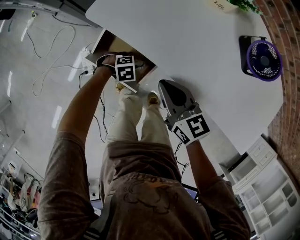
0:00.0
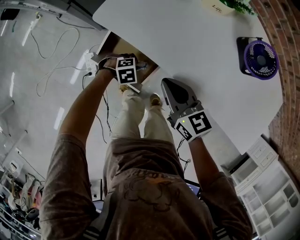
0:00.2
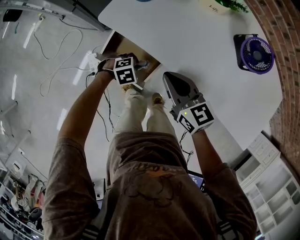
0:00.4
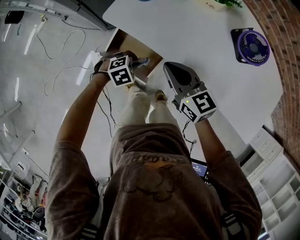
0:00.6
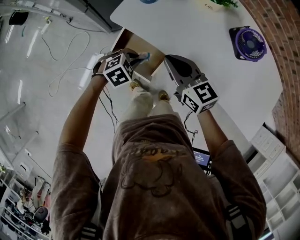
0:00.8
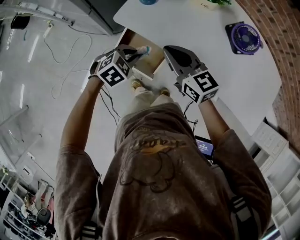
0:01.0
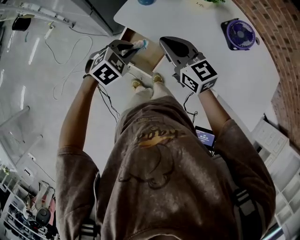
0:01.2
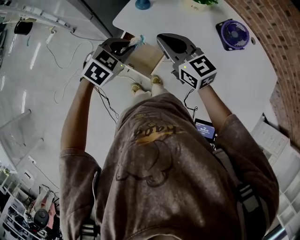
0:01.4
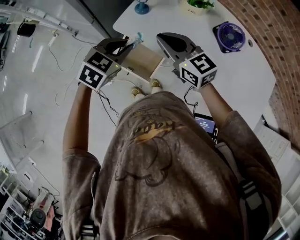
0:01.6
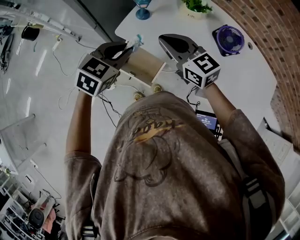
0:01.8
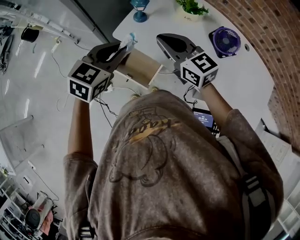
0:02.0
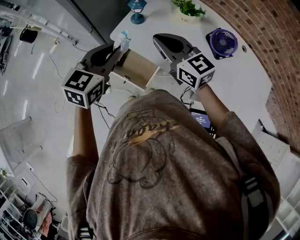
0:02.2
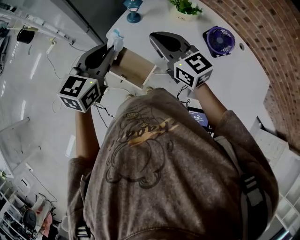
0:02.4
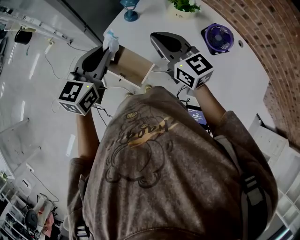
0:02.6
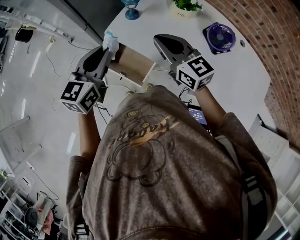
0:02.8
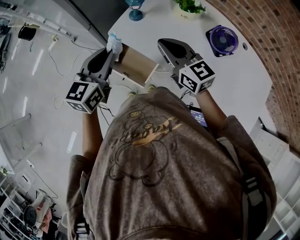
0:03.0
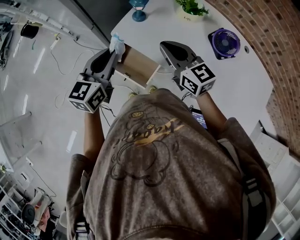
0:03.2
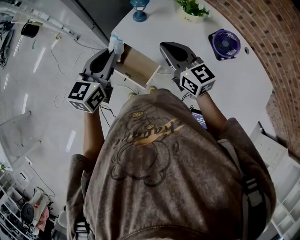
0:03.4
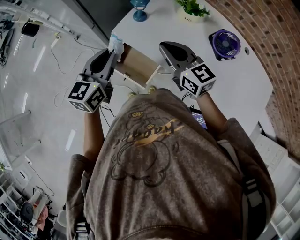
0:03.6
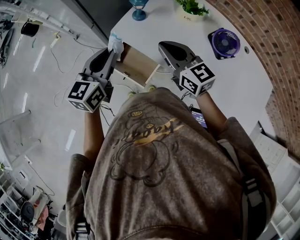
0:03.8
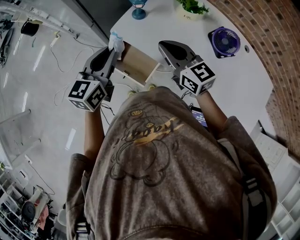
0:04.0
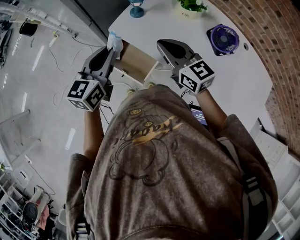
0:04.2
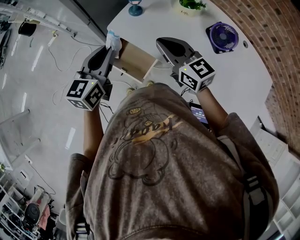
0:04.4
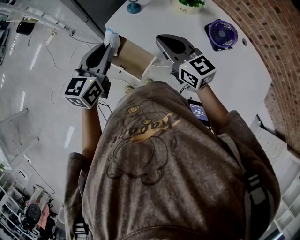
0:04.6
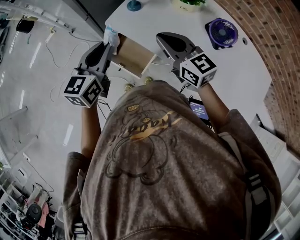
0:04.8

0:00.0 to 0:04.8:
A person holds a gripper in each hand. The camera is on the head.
0:00.0 to 0:01.6: The left gripper moves upward, some 40 cm, and points its fingers approximately 30 degrees further upward, while the right gripper travels upward by roughly 20 cm, and rotates roughly 20 degrees.
0:01.6 to 0:03.2: The left gripper is displaced upward by approximately 5 cm, and changes its angle by approximately 40 degrees.
0:03.2 to 0:04.8: The grippers move only a little.

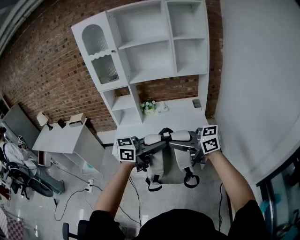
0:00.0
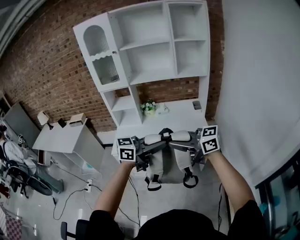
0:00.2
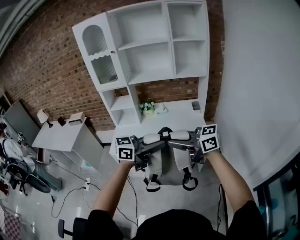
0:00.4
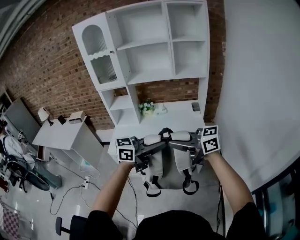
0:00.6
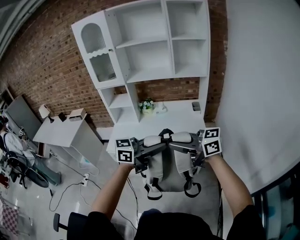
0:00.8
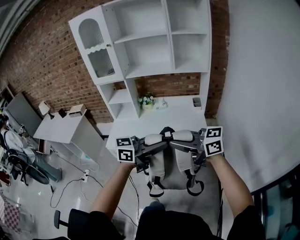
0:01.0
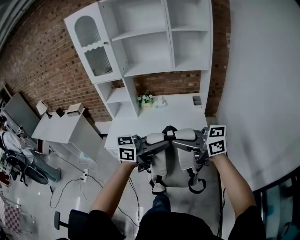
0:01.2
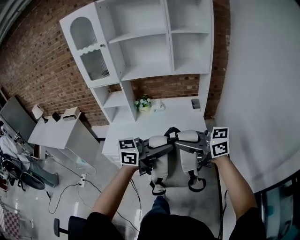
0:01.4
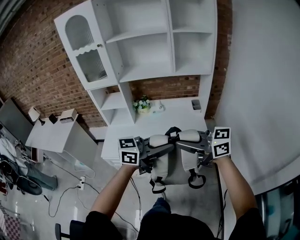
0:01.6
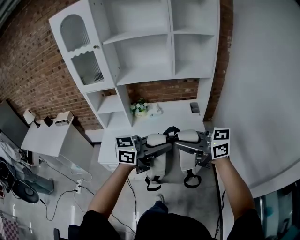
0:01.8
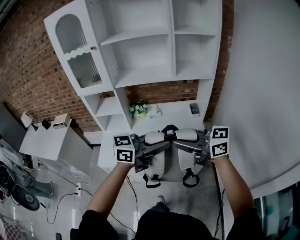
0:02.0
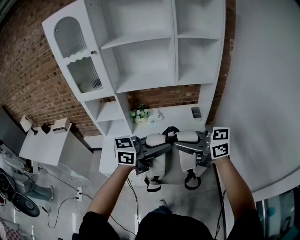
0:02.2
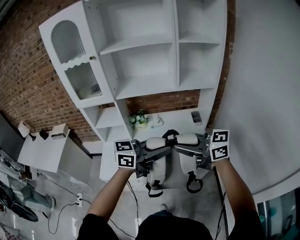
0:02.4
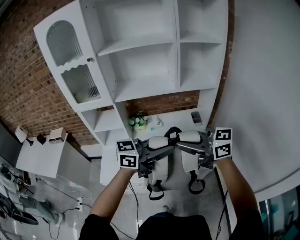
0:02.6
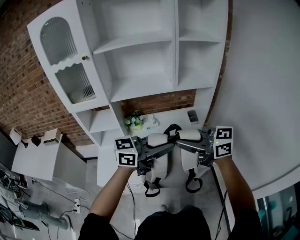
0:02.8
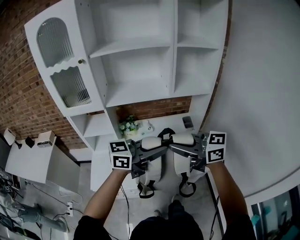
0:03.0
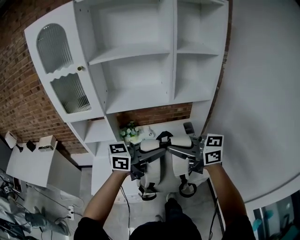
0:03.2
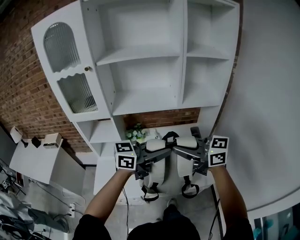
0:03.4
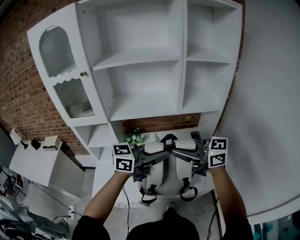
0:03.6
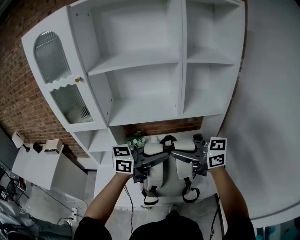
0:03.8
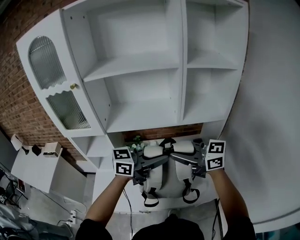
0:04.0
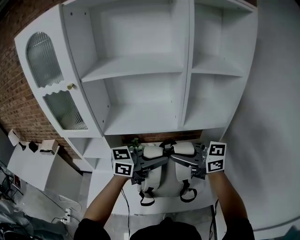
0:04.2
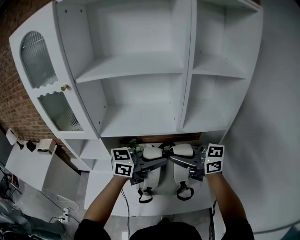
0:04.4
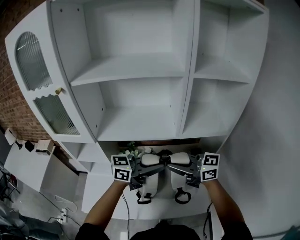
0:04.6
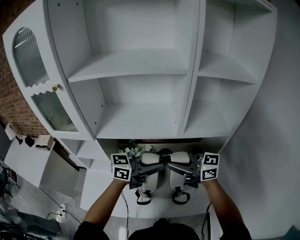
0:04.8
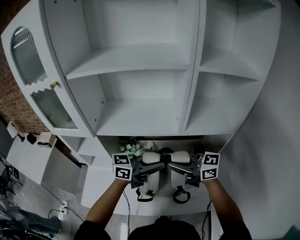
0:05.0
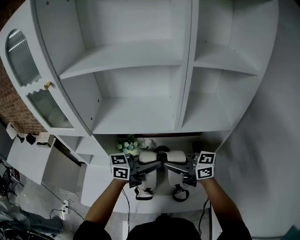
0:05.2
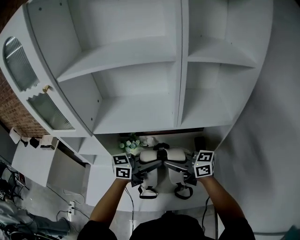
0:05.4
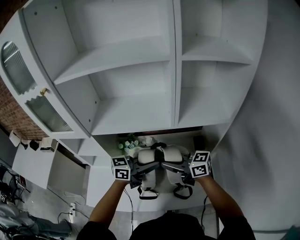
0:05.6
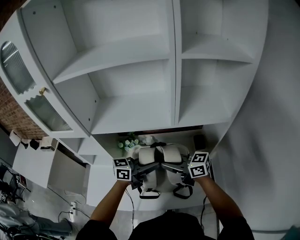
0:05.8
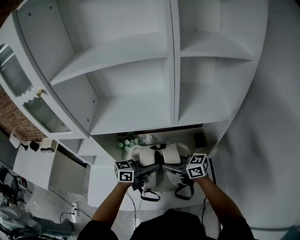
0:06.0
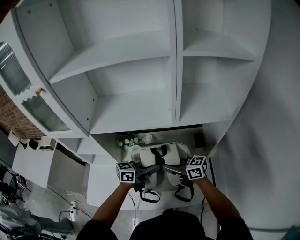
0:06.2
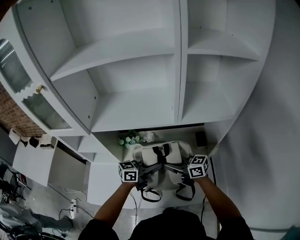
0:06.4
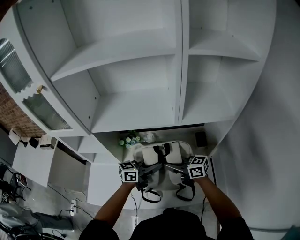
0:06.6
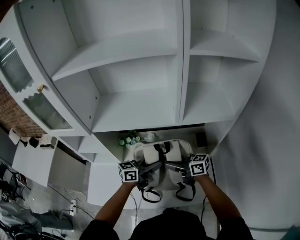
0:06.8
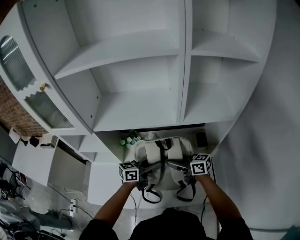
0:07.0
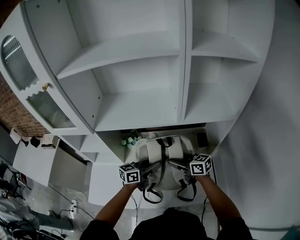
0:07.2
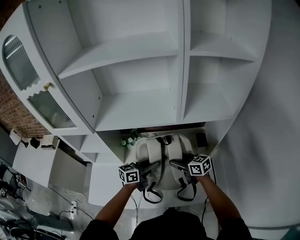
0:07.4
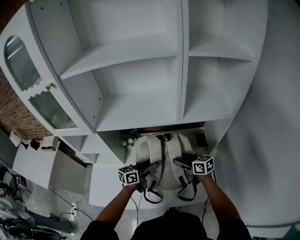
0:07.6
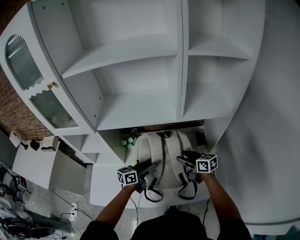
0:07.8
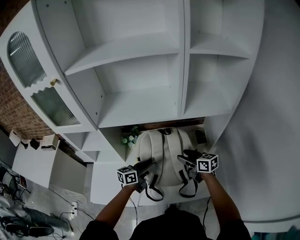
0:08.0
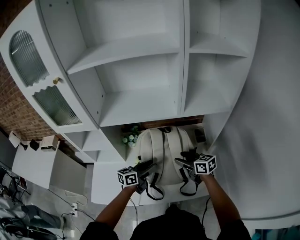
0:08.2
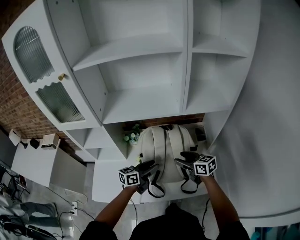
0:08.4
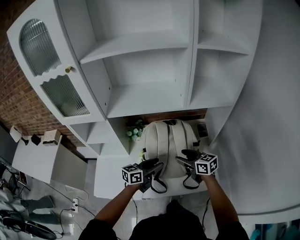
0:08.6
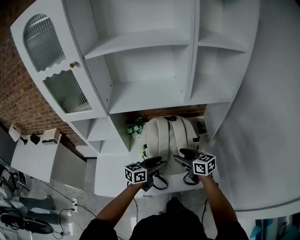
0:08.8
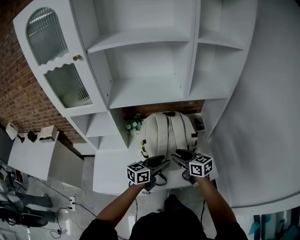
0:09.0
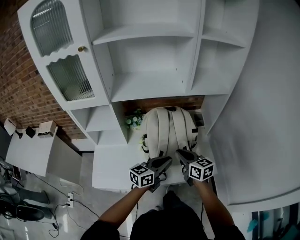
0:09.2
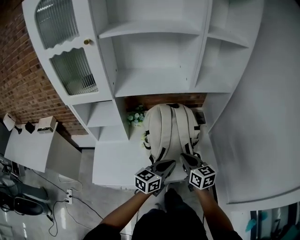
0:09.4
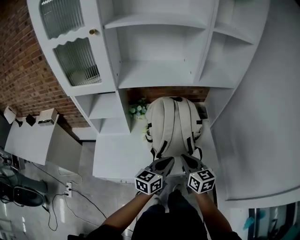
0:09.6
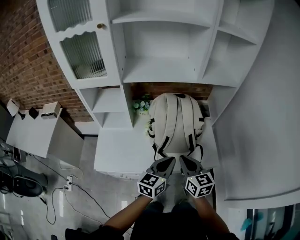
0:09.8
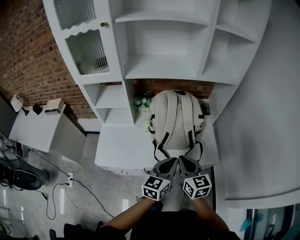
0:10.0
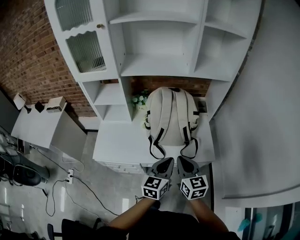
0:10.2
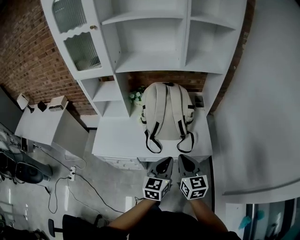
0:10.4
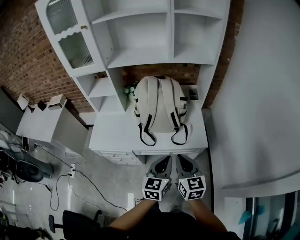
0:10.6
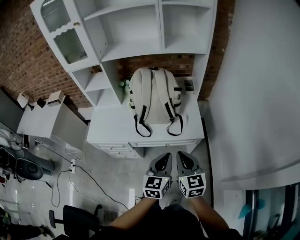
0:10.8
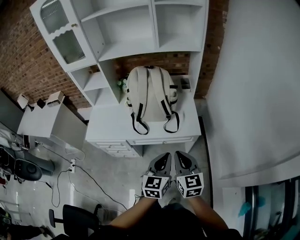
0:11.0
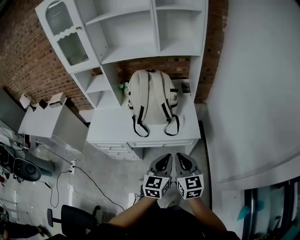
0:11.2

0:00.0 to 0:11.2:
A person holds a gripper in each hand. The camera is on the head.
0:00.0 to 0:01.6: The left gripper changes place by roughly 15 cm, while the right gripper shifts by roughly 15 cm.
0:01.6 to 0:03.2: The right gripper changes place by approximately 20 cm; the left gripper moves approximately 25 cm.
0:03.2 to 0:04.8: The left gripper shifts by roughly 20 cm, while the right gripper moves roughly 20 cm.
0:04.8 to 0:06.4: The two grippers go some 15 cm downward.
0:06.4 to 0:08.0: The left gripper shifts by some 10 cm, and opens up. Meanwhile the right gripper changes place by roughly 10 cm, swivels approximately 30 degrees, and opens its fingers.
0:08.0 to 0:09.6: Both grippers travel together backward, about 20 cm. The right gripper swivels about 20 degrees, and closes its fingers. The left gripper closes up.
0:09.6 to 0:11.2: Both grippers travel together backward and to the right, about 30 cm. The left gripper swivels approximately 30 degrees.

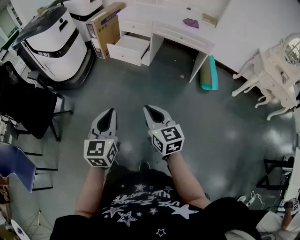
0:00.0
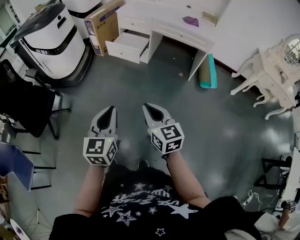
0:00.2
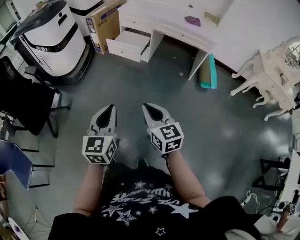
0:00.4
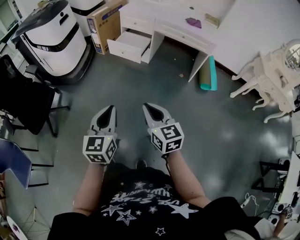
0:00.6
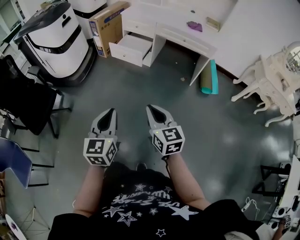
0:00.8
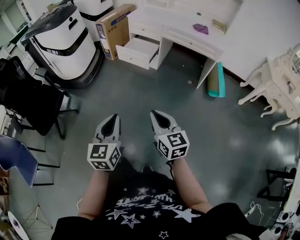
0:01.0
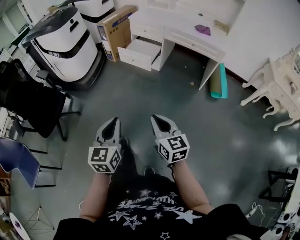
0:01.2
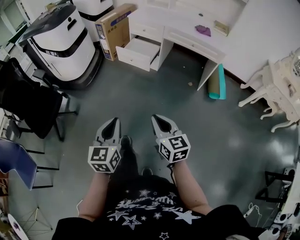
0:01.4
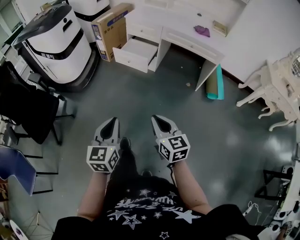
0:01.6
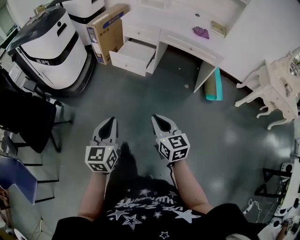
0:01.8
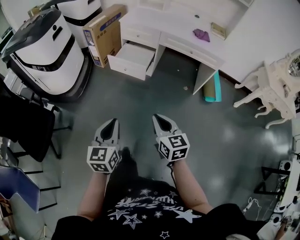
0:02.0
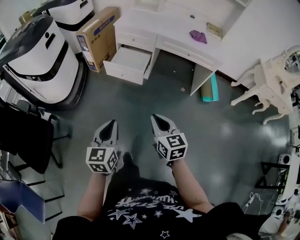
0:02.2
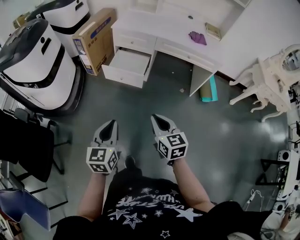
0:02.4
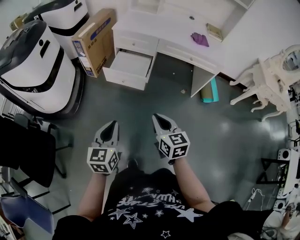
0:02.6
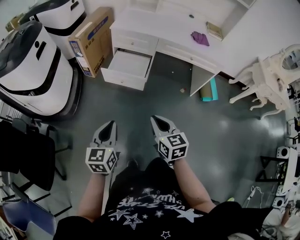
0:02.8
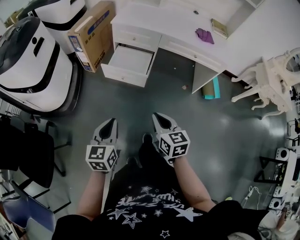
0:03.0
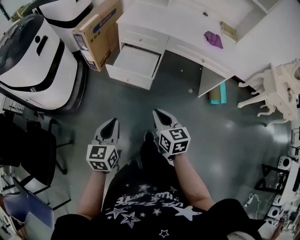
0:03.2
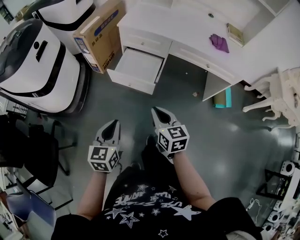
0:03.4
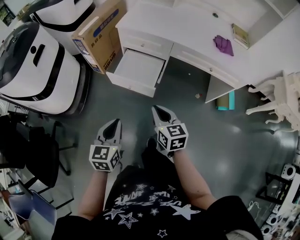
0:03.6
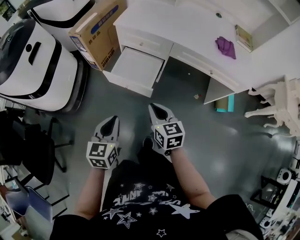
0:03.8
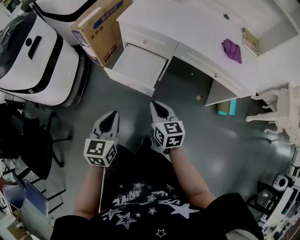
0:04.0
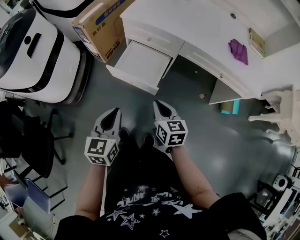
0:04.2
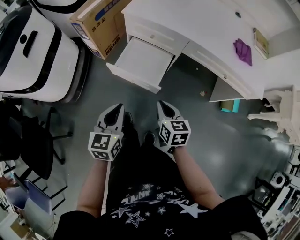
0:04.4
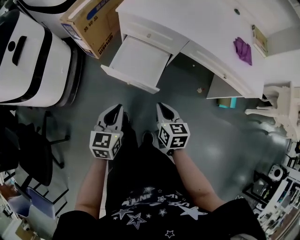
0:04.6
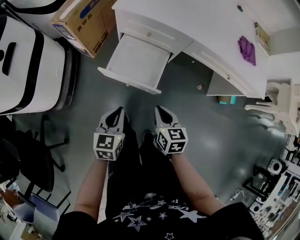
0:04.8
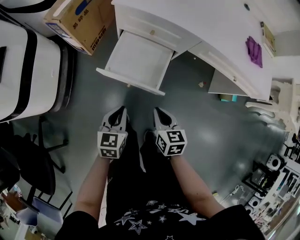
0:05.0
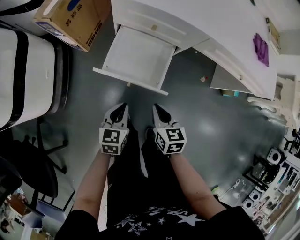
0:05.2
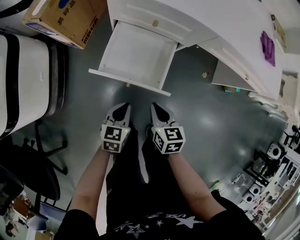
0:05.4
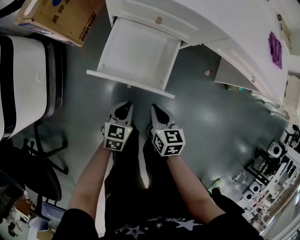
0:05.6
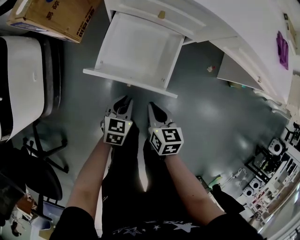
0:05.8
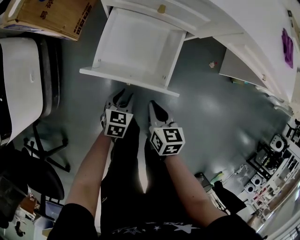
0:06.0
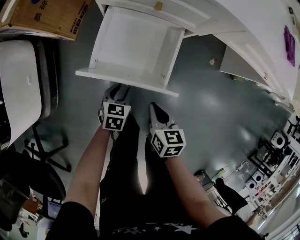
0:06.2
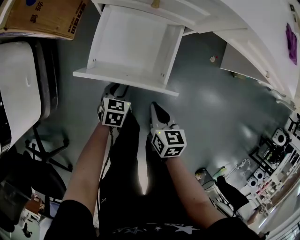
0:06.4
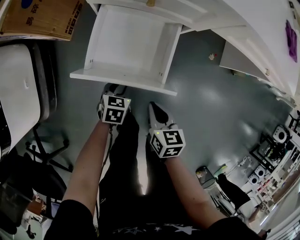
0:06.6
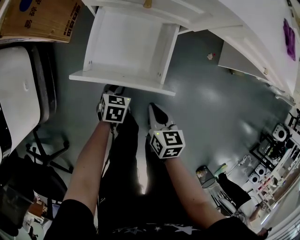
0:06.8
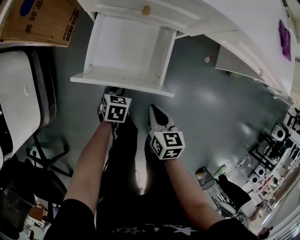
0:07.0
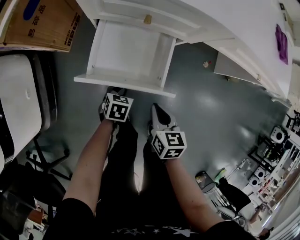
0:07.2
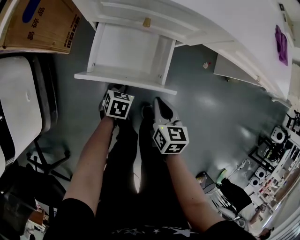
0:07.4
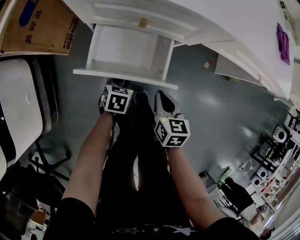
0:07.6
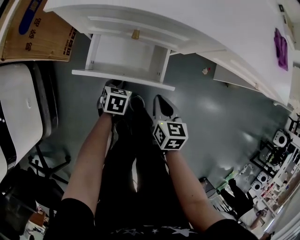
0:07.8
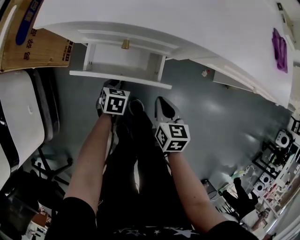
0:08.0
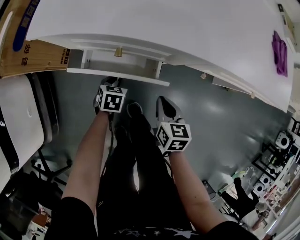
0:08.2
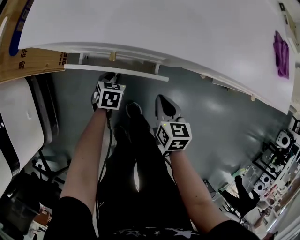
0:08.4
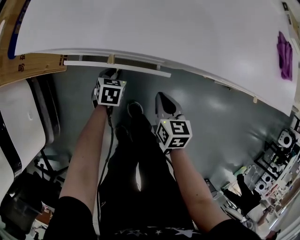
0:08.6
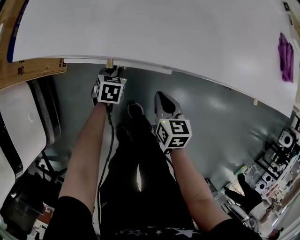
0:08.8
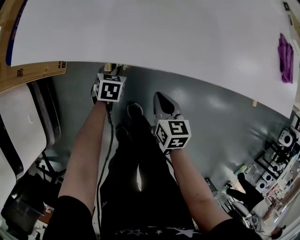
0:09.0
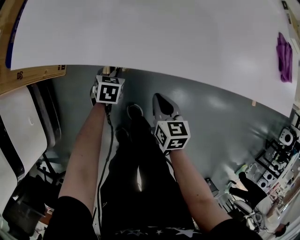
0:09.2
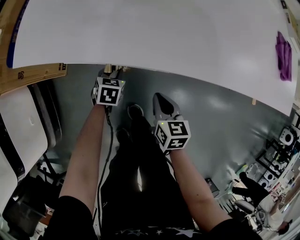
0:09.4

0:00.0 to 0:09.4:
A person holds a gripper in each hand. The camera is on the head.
0:00.0 to 0:01.6: The grippers both shift forward by approximately 5 cm.
0:01.6 to 0:03.2: Both grippers travel together forward, some 35 cm.
0:03.2 to 0:04.8: Both grippers travel together forward and downward, about 30 cm.
0:04.8 to 0:06.2: The right gripper moves downward, some 20 cm, while the left gripper heads downward, covering roughly 30 cm, changes its angle by approximately 30 degrees, and opens.
0:06.2 to 0:07.8: The grippers both shift forward by approximately 15 cm.
0:07.8 to 0:09.4: The left gripper moves forward, roughly 15 cm; the right gripper heads forward, covering some 10 cm.
